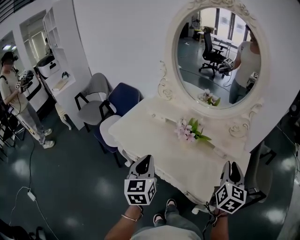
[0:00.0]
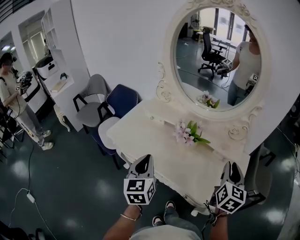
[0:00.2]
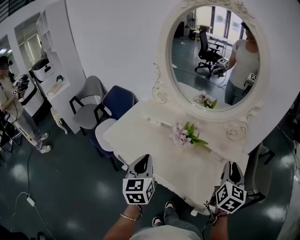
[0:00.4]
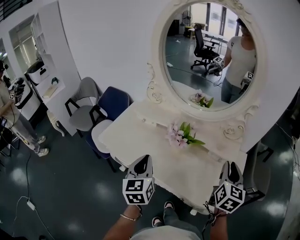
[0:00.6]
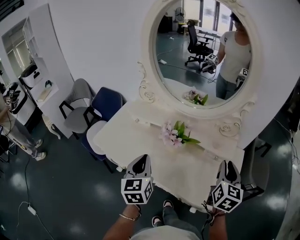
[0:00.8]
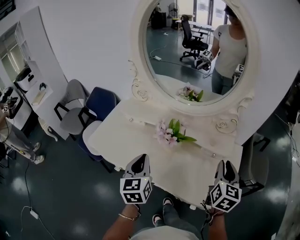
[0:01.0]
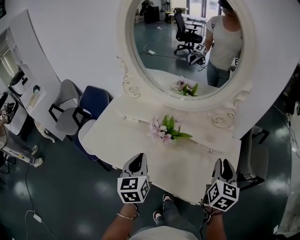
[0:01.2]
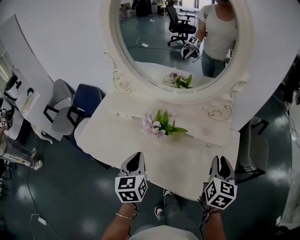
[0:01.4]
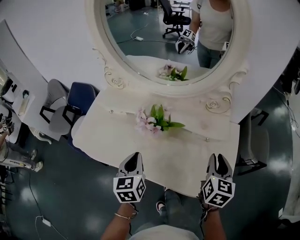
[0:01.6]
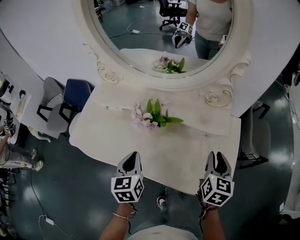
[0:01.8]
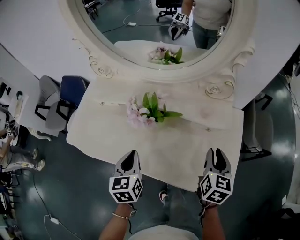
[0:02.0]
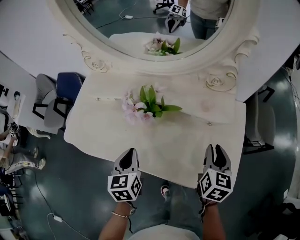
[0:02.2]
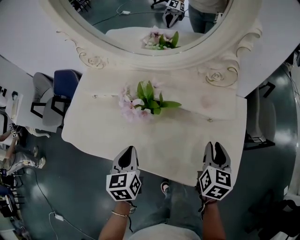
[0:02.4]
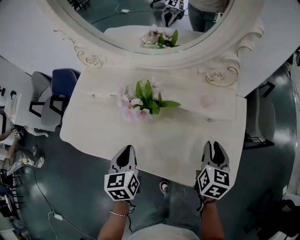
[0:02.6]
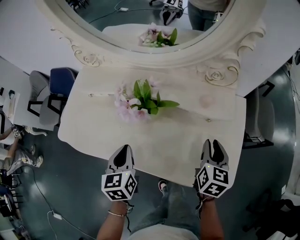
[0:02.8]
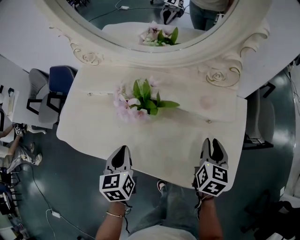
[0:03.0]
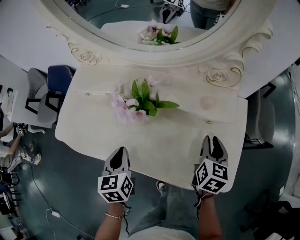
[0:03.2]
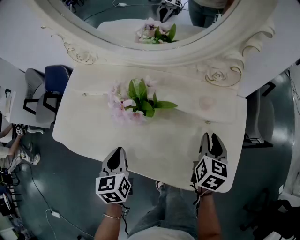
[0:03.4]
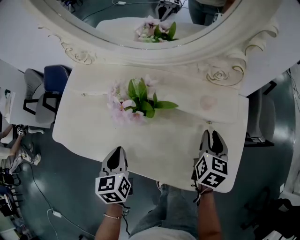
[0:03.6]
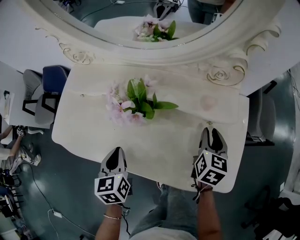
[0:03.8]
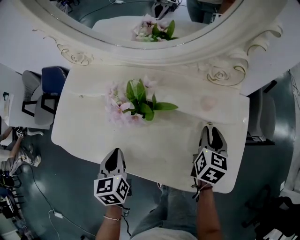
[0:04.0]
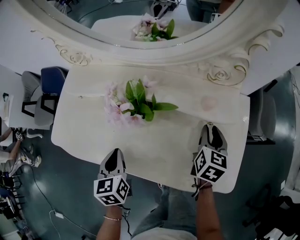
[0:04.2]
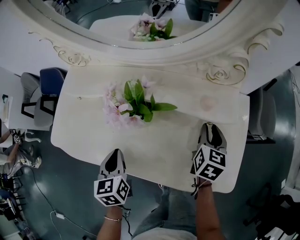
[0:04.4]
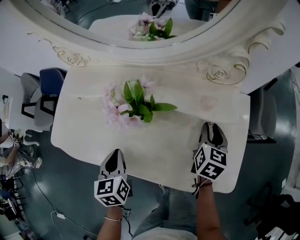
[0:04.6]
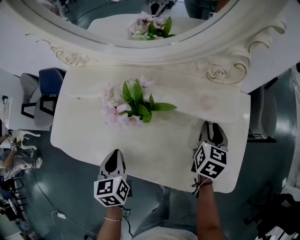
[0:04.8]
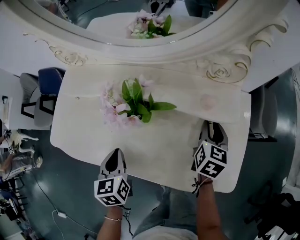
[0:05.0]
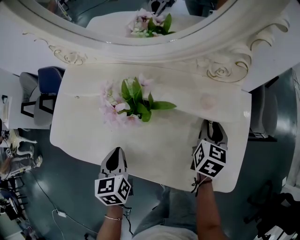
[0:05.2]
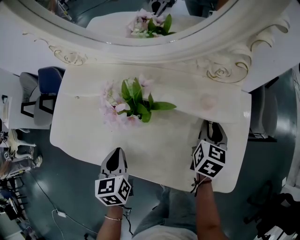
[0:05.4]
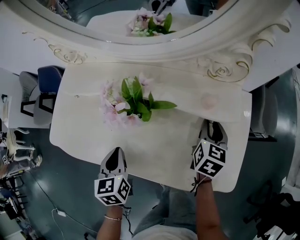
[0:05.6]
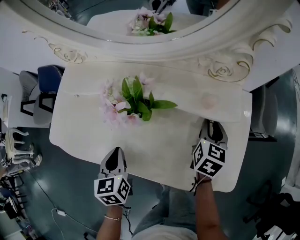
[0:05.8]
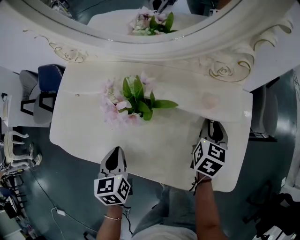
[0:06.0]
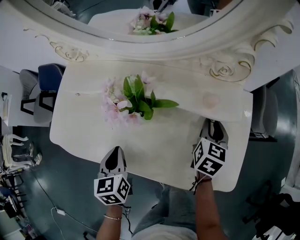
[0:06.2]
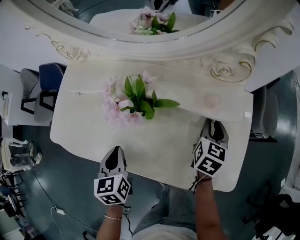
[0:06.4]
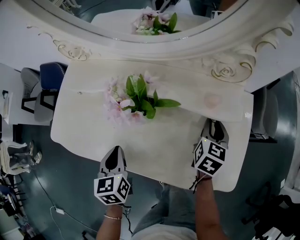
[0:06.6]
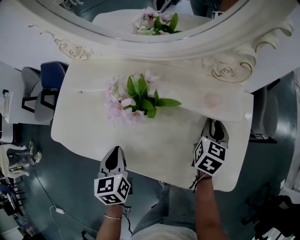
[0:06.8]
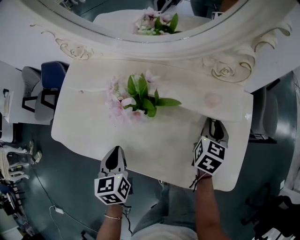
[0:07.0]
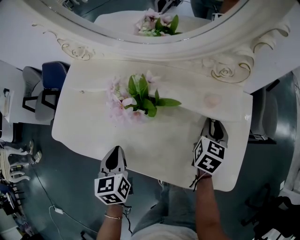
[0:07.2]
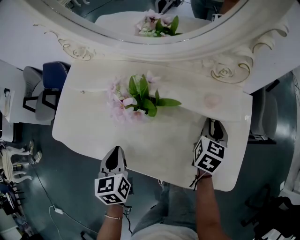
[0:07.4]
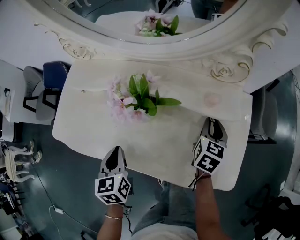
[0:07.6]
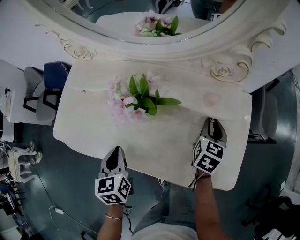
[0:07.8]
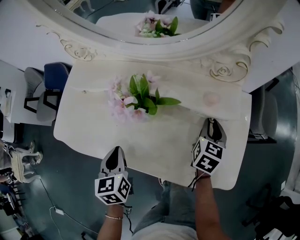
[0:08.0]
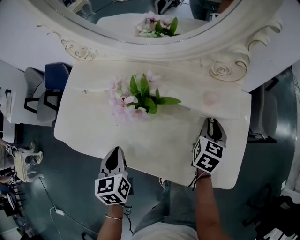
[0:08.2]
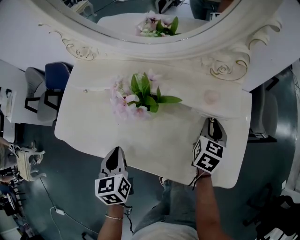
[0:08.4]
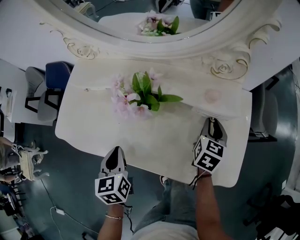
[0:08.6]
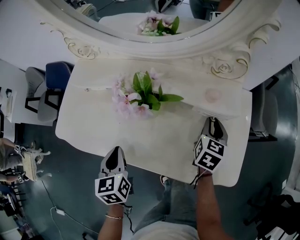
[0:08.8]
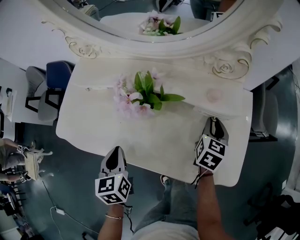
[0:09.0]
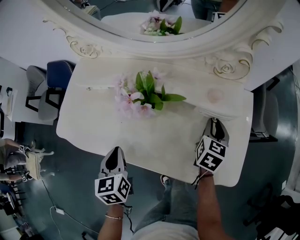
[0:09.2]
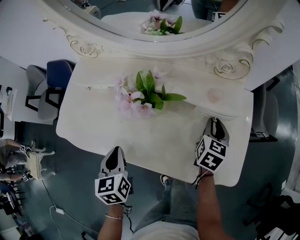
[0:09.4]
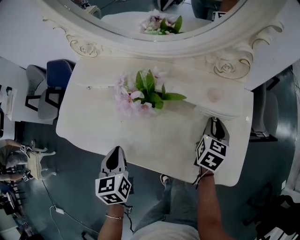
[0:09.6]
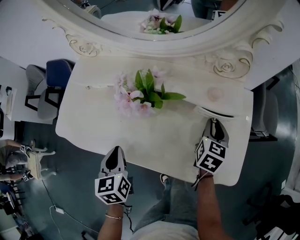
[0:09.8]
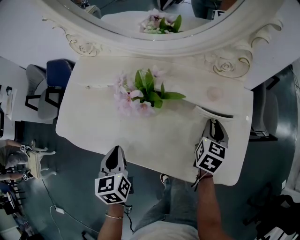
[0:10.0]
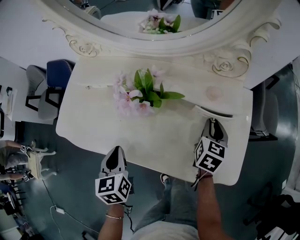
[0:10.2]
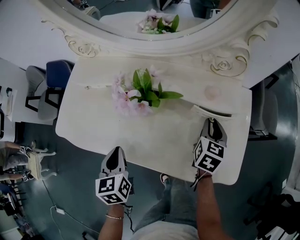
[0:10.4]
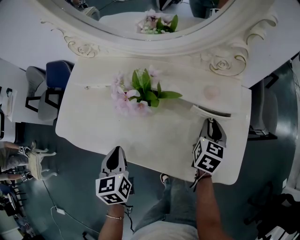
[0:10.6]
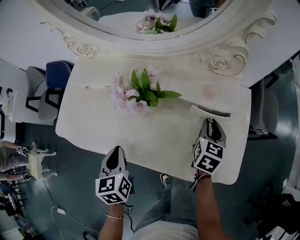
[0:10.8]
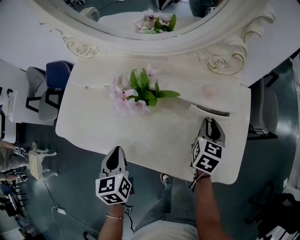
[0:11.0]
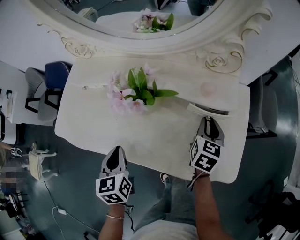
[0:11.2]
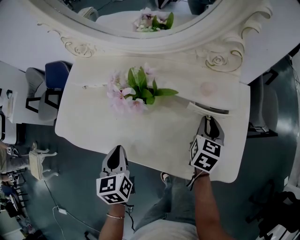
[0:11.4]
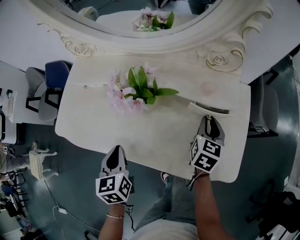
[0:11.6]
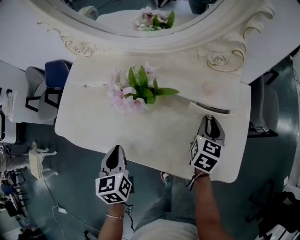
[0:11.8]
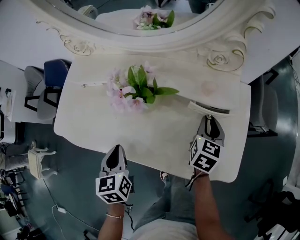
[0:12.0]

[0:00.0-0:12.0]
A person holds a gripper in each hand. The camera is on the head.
0:00.0 to 0:01.6: The right gripper heads downward, to the right and forward, covering roughly 15 cm. The left gripper shifts roughly 15 cm forward, downward and to the right.
0:01.6 to 0:03.0: Both grippers travel together downward, about 10 cm.
0:03.0 to 0:04.4: The right gripper goes approximately 5 cm forward.
0:04.4 to 0:06.0: The two grippers keep their place.
0:06.0 to 0:09.0: The grippers make only small movements.
0:09.0 to 0:10.4: The two grippers keep their place.
0:10.4 to 0:12.0: There are only small adjustments of the grippers.

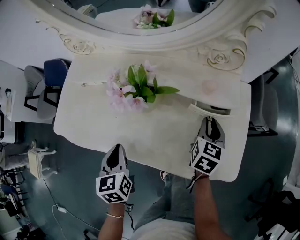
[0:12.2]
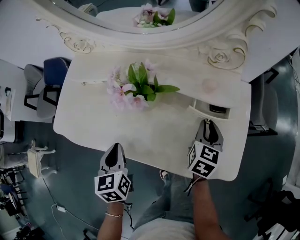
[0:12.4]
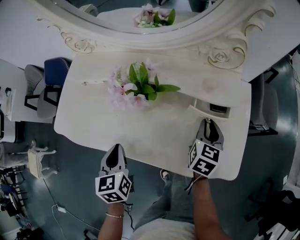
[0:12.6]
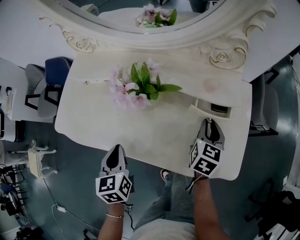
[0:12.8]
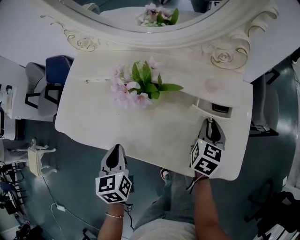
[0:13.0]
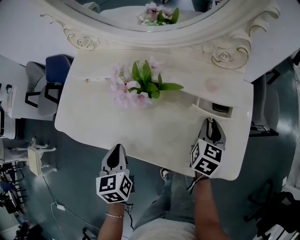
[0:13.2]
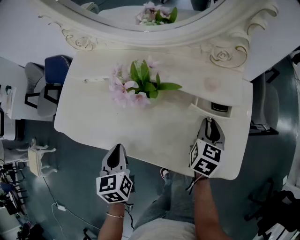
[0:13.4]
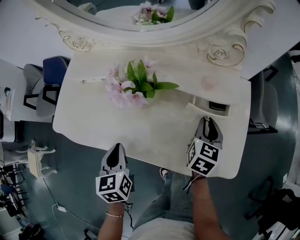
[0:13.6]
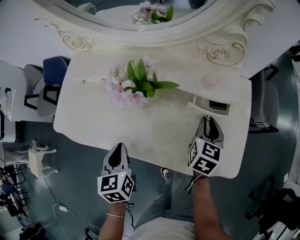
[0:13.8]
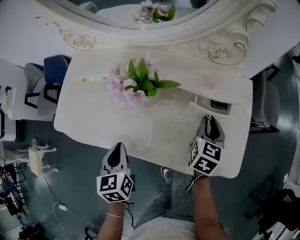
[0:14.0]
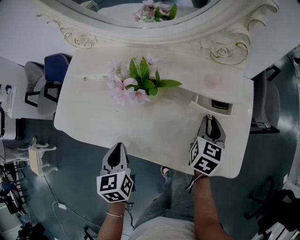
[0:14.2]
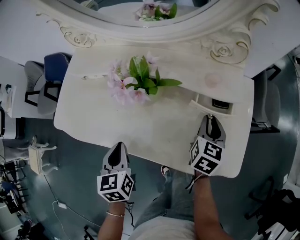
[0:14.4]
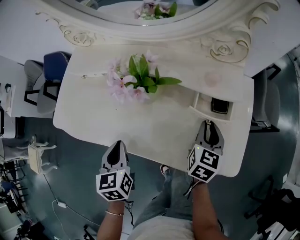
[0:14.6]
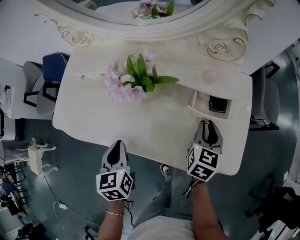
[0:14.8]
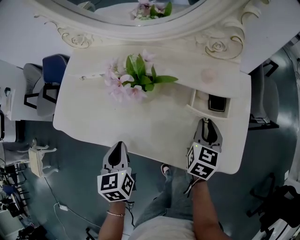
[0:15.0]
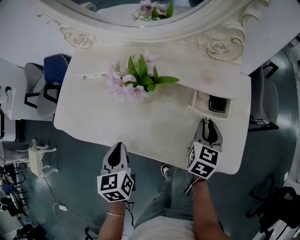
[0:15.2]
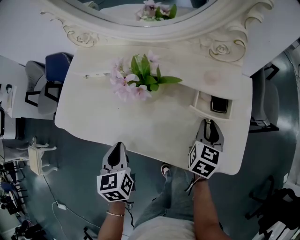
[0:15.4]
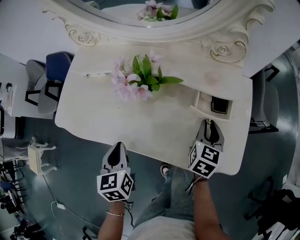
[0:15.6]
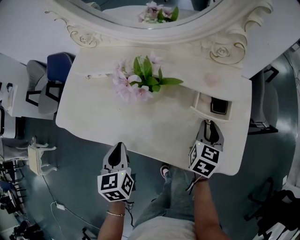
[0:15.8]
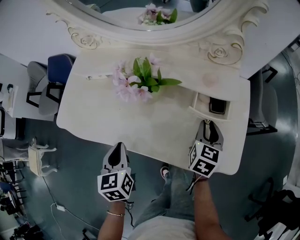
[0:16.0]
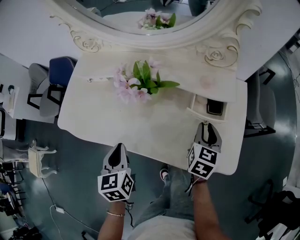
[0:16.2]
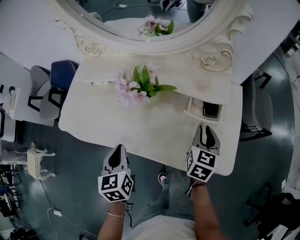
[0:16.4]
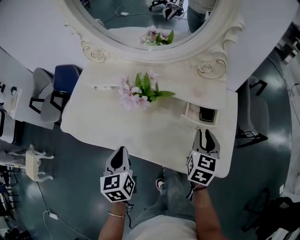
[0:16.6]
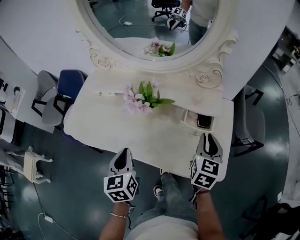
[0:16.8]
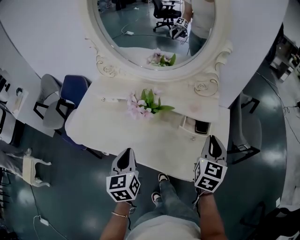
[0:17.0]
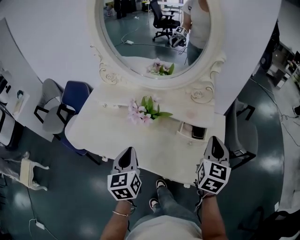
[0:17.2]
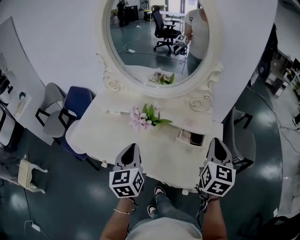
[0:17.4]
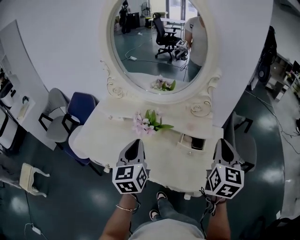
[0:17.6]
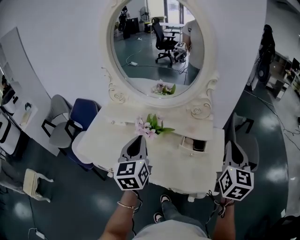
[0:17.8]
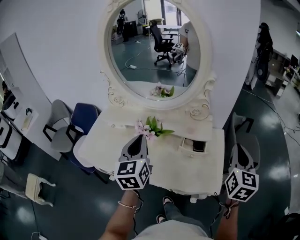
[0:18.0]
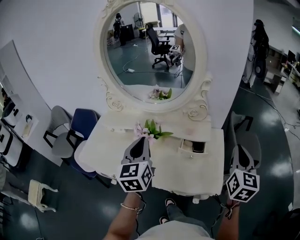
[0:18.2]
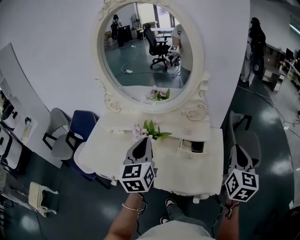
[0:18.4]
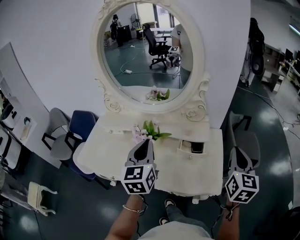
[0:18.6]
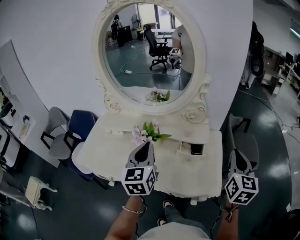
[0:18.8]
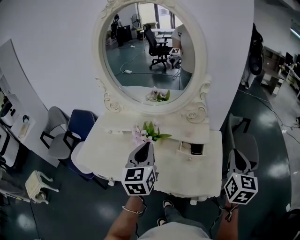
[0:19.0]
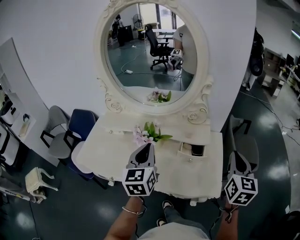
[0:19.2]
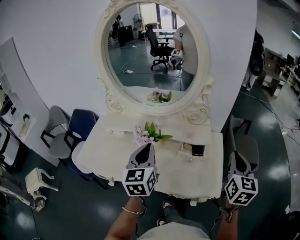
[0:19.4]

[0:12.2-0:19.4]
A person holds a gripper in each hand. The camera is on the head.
0:12.2 to 0:15.0: The grippers move only a little.
0:15.0 to 0:16.6: The right gripper goes about 5 cm upward.
0:16.6 to 0:18.0: The right gripper is displaced upward and to the right by approximately 25 cm, turns by some 20 degrees, and closes its fingers; the left gripper travels upward by roughly 20 cm, and swivels about 30 degrees.
0:18.0 to 0:19.4: The grippers make only small movements.

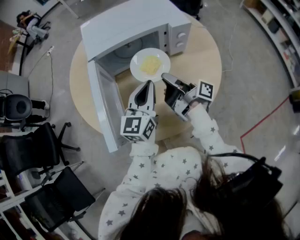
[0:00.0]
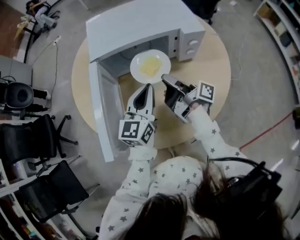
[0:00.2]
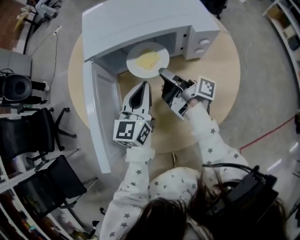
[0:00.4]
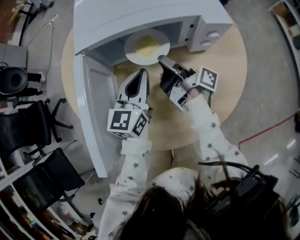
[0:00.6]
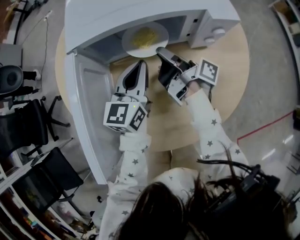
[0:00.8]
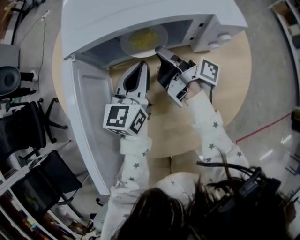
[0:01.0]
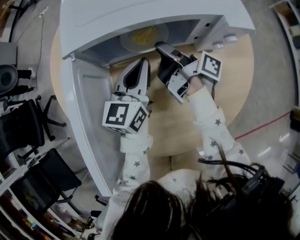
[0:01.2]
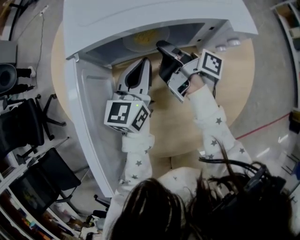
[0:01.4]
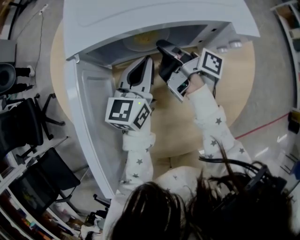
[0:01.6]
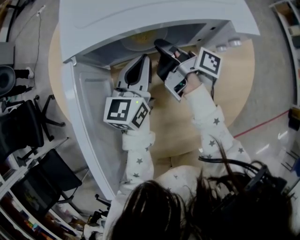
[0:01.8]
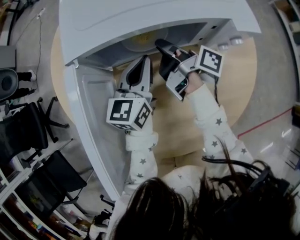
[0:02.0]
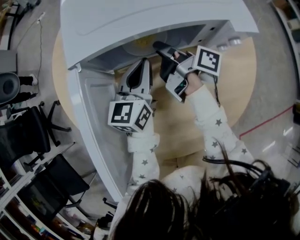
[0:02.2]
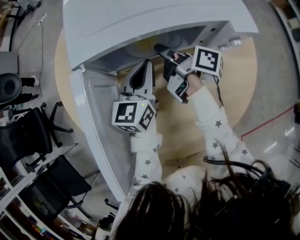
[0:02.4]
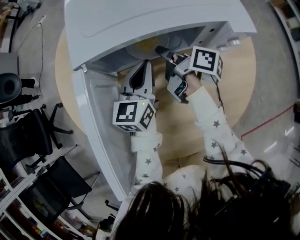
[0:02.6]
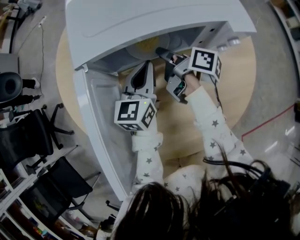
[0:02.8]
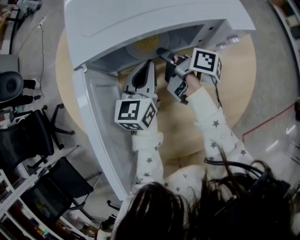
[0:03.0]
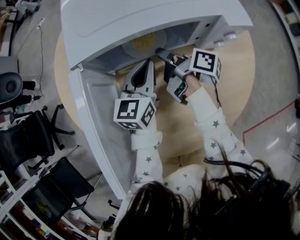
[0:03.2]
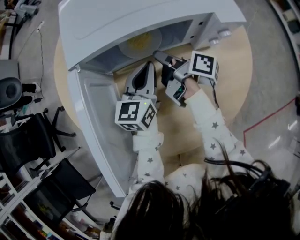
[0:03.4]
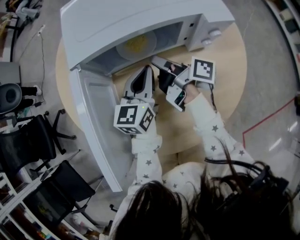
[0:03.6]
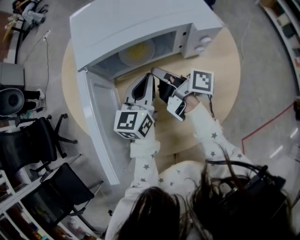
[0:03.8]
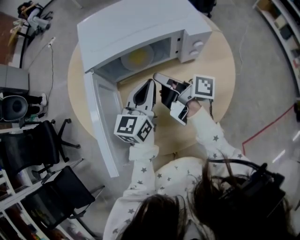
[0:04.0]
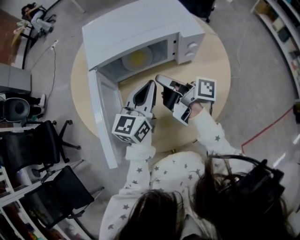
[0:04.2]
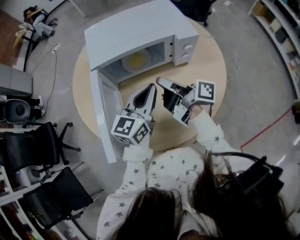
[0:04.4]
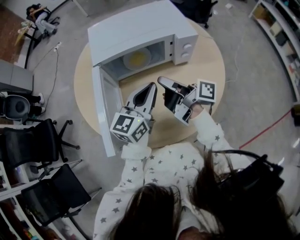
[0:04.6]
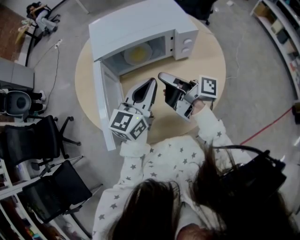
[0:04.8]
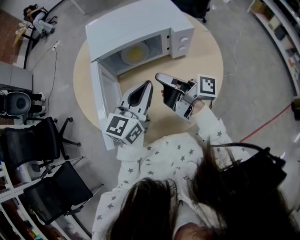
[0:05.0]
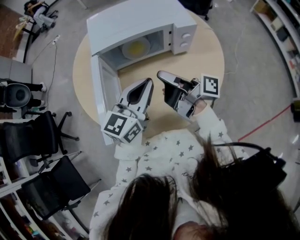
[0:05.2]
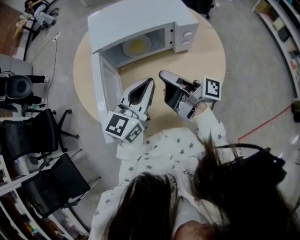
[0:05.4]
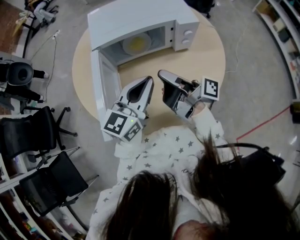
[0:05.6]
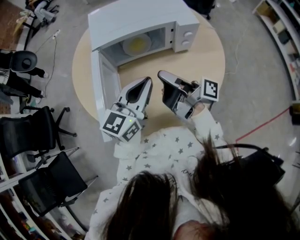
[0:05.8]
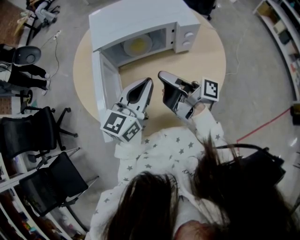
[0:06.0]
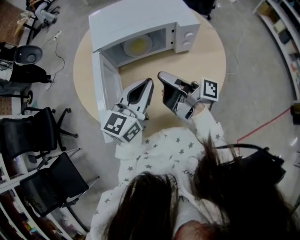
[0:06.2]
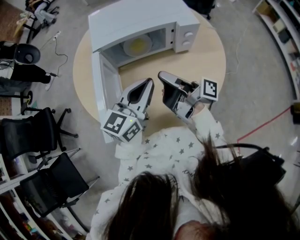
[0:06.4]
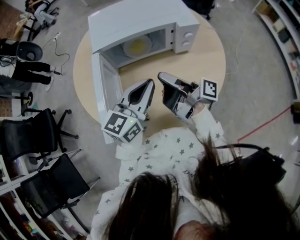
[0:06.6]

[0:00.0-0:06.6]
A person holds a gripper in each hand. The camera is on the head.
0:00.0 to 0:01.6: The left gripper moves approximately 5 cm.
0:03.2 to 0:05.0: The left gripper moves upward, roughly 10 cm.
